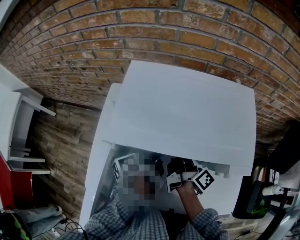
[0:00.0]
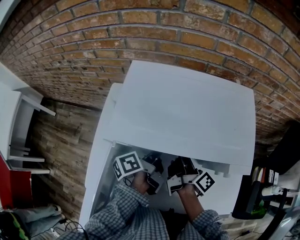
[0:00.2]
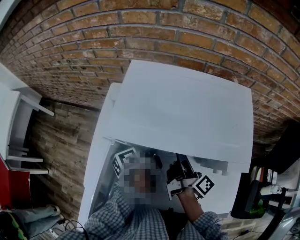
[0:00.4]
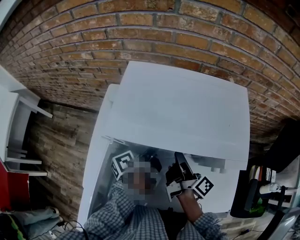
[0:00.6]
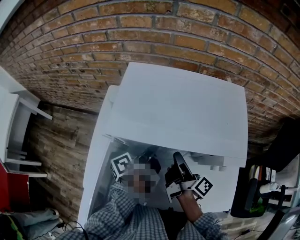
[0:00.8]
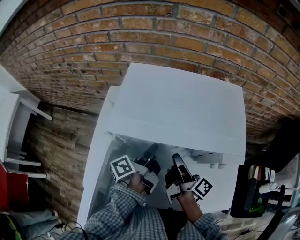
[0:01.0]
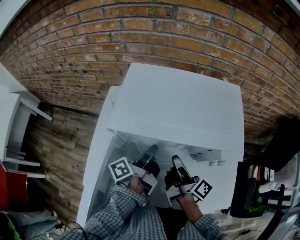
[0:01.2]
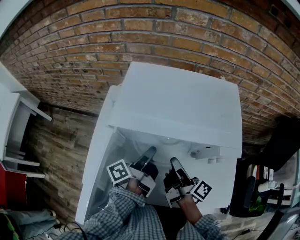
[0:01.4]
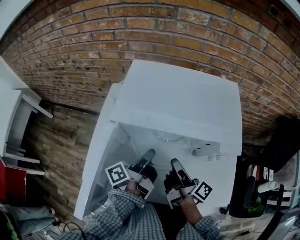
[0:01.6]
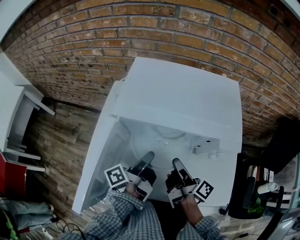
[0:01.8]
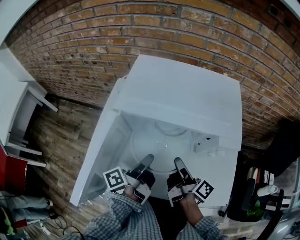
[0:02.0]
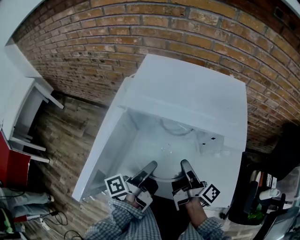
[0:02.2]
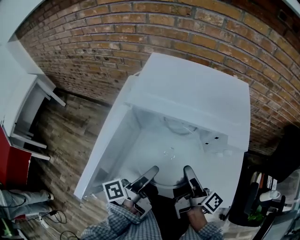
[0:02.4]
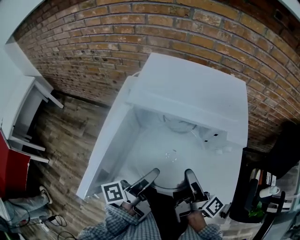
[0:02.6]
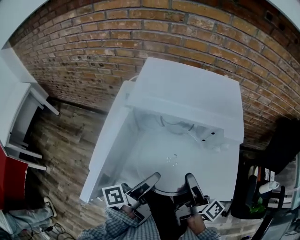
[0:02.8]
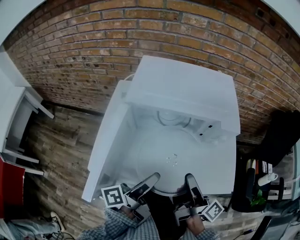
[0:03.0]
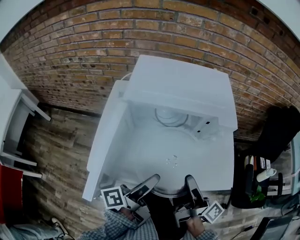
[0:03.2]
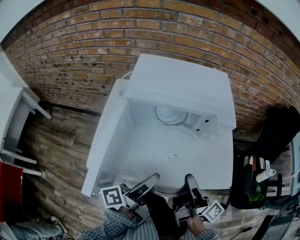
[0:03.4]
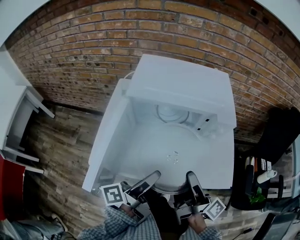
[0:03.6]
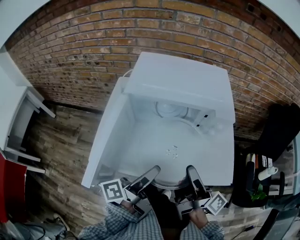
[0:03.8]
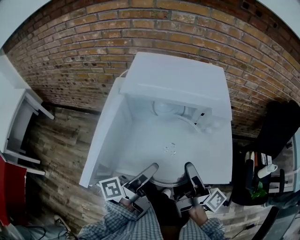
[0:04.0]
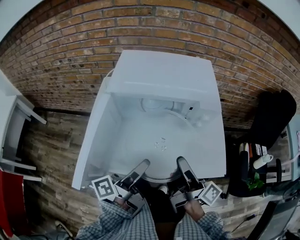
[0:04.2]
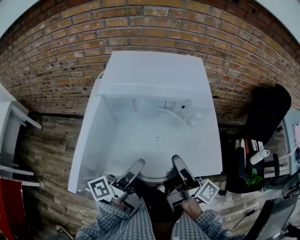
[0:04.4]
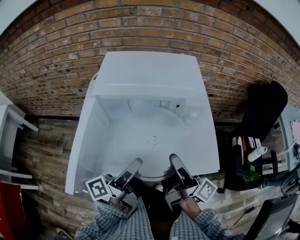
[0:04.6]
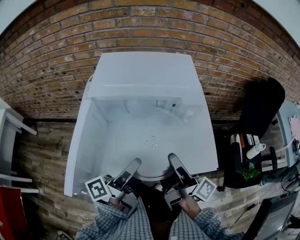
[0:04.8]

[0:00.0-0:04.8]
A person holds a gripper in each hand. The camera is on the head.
0:00.0 to 0:01.6: The left gripper heads backward, covering about 5 cm. The right gripper is displaced backward by roughly 10 cm.
0:01.6 to 0:03.2: Both grippers travel together backward, approximately 15 cm.
0:03.2 to 0:04.8: The grippers move only a little.

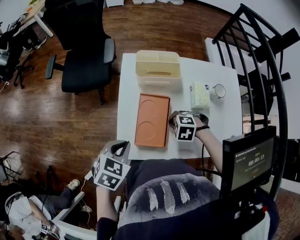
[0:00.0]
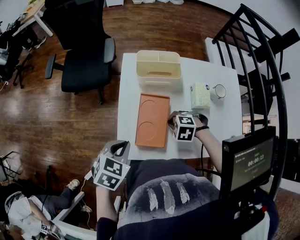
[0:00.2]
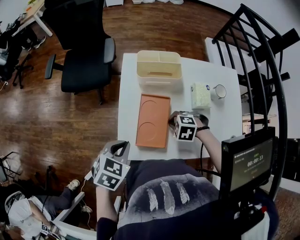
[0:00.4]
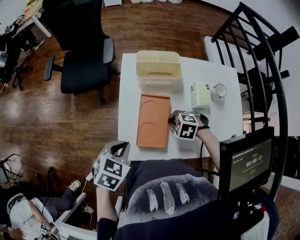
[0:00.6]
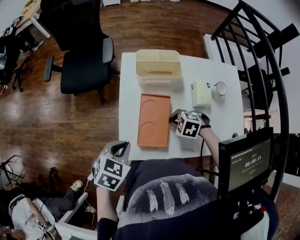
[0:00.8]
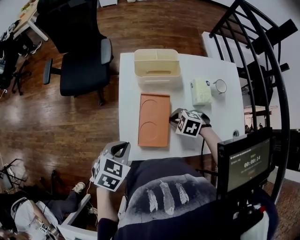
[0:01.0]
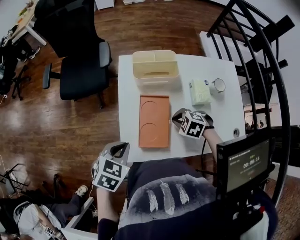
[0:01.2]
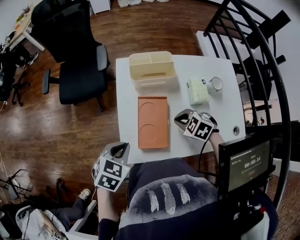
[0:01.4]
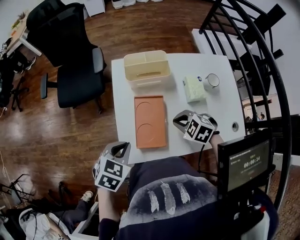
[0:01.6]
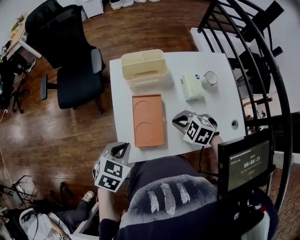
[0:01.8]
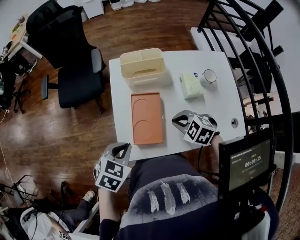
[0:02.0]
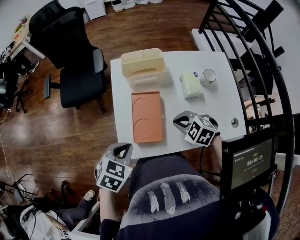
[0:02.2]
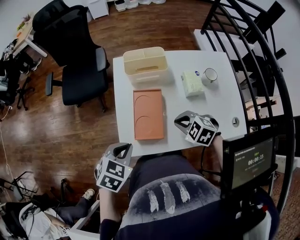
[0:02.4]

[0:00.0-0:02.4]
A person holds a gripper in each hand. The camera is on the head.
0:01.2 to 0:02.4: The left gripper changes place by about 5 cm.

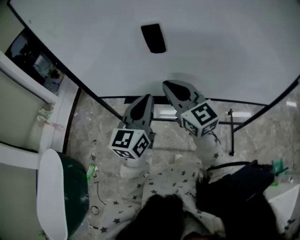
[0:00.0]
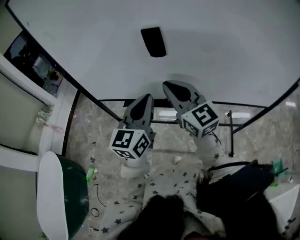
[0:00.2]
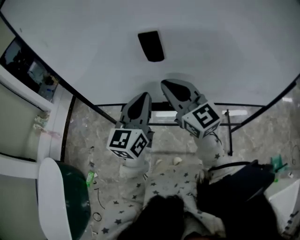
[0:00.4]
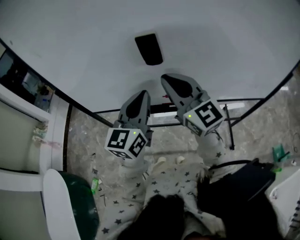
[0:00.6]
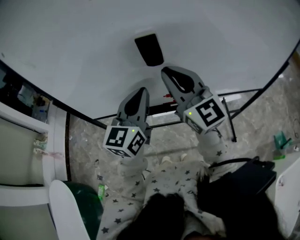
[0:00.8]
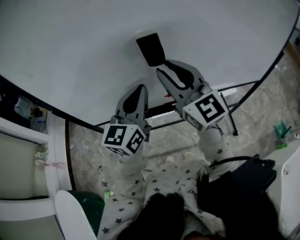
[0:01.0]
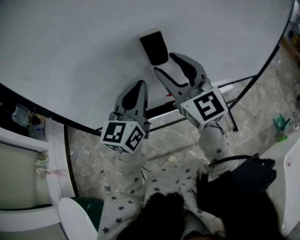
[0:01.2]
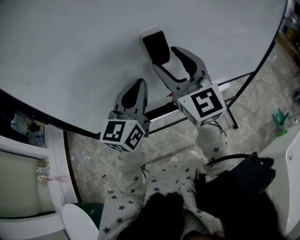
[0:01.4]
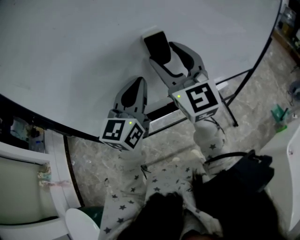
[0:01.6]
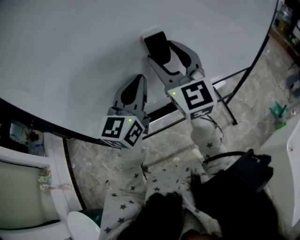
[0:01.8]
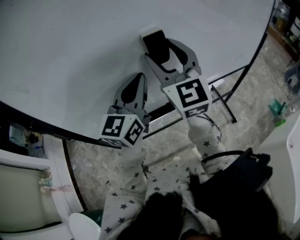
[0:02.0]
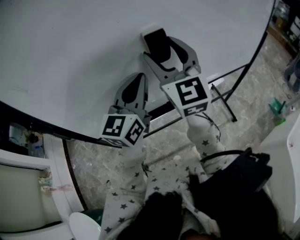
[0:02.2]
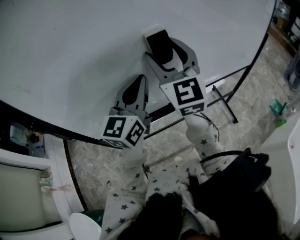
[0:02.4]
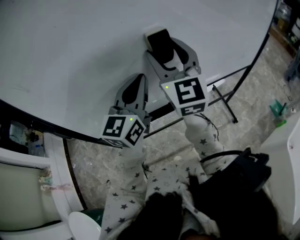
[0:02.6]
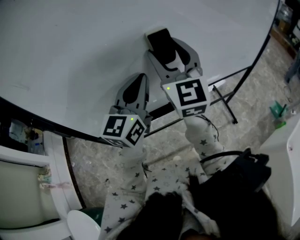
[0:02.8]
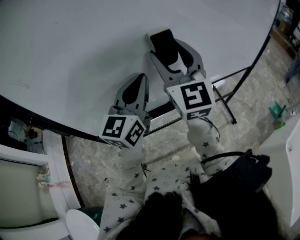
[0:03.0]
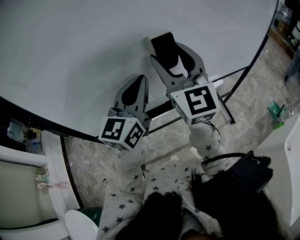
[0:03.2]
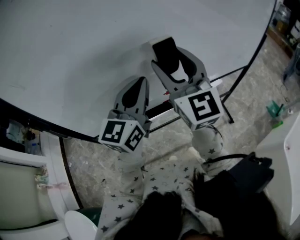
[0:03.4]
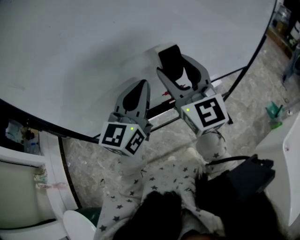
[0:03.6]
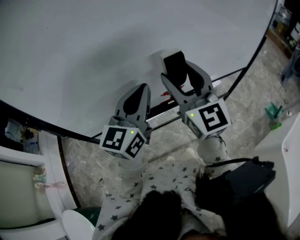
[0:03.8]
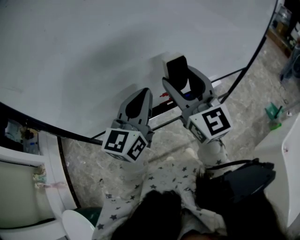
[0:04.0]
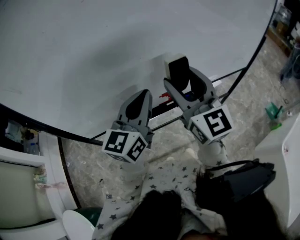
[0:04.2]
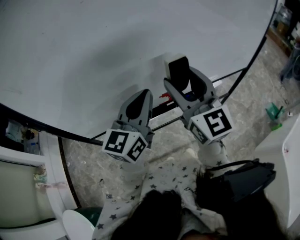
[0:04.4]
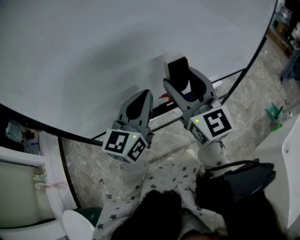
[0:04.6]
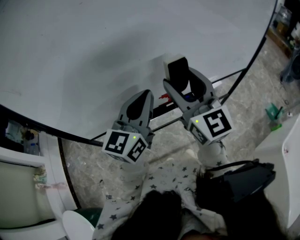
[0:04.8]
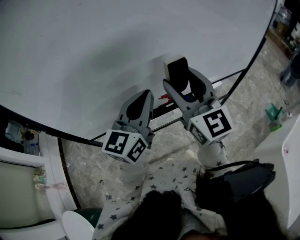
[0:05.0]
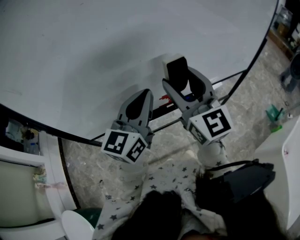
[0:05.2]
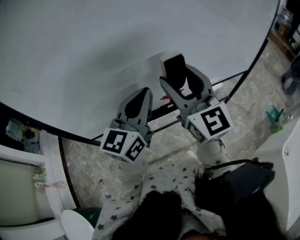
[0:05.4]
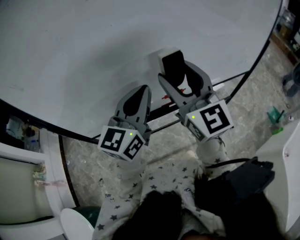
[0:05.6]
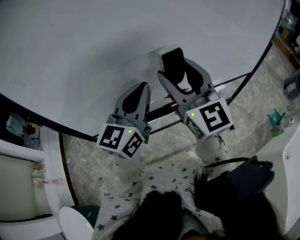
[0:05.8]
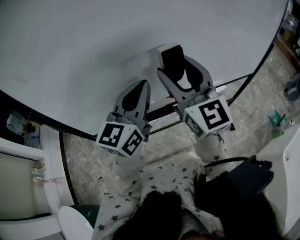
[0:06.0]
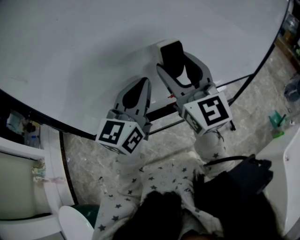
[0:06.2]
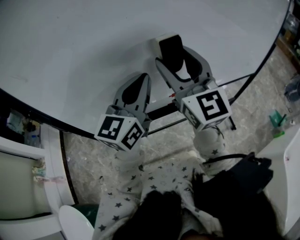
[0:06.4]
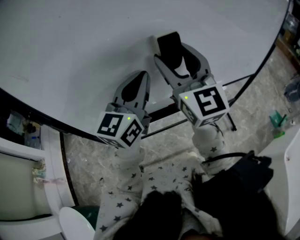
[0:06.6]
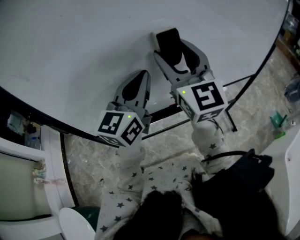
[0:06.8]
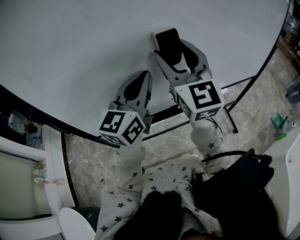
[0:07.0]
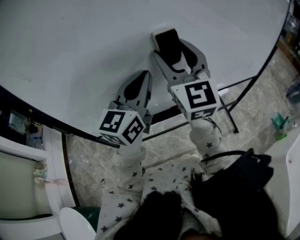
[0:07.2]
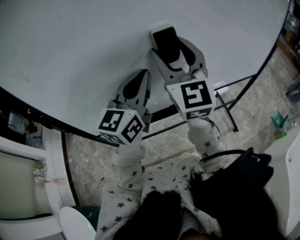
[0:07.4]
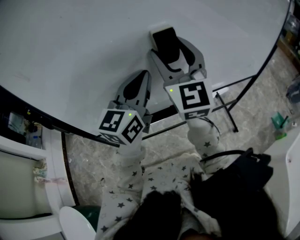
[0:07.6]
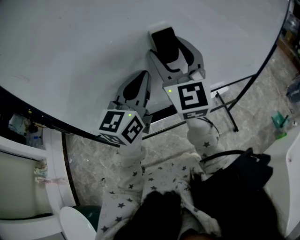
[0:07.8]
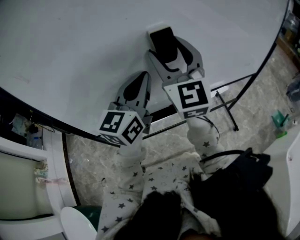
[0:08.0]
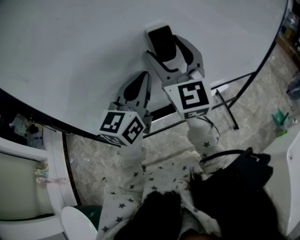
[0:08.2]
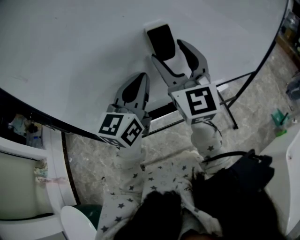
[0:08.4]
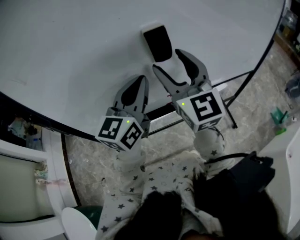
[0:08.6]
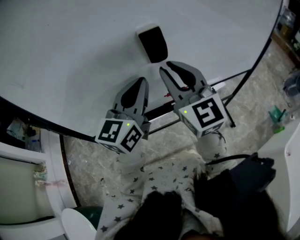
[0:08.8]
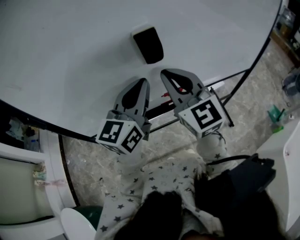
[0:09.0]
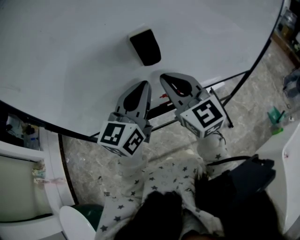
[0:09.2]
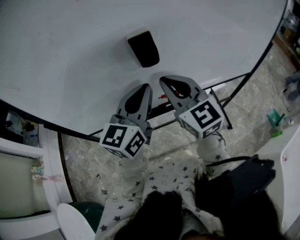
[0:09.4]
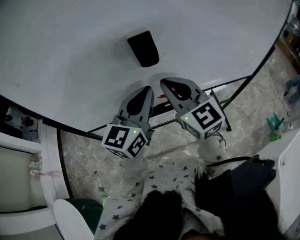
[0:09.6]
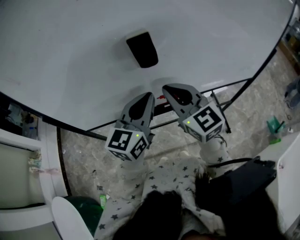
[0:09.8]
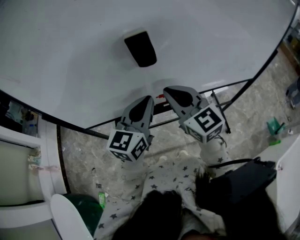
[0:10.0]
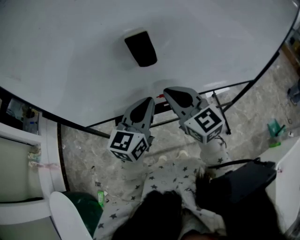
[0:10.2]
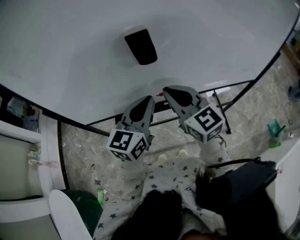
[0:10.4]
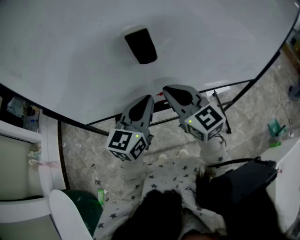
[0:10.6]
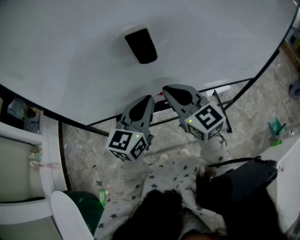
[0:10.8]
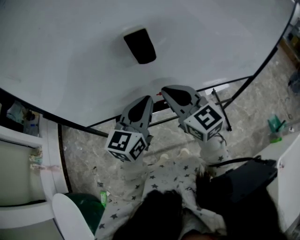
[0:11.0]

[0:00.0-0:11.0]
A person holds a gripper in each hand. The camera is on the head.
0:00.0 to 0:01.6: The right gripper is displaced upward by about 10 cm, swivels some 40 degrees, and opens up. Meanwhile the left gripper ends up some 15 cm from where it was, and turns by approximately 30 degrees.
0:01.6 to 0:03.2: The grippers make only small movements.
0:03.2 to 0:04.8: The right gripper moves to the right, some 5 cm. The left gripper changes place by approximately 5 cm.
0:04.8 to 0:06.2: The right gripper moves to the left, roughly 5 cm.
0:06.2 to 0:07.8: The grippers move only a little.
0:07.8 to 0:09.4: The right gripper is displaced downward by approximately 10 cm, rotates some 30 degrees, and closes up, while the left gripper goes roughly 5 cm to the right.
0:09.4 to 0:11.0: The left gripper is displaced downward by approximately 5 cm.

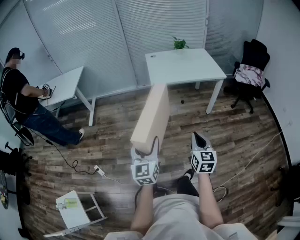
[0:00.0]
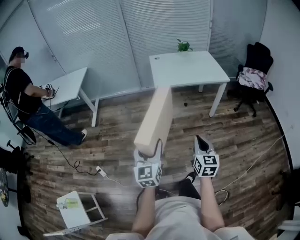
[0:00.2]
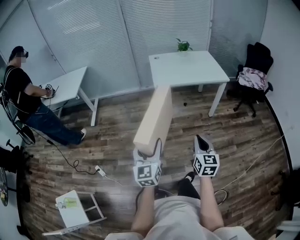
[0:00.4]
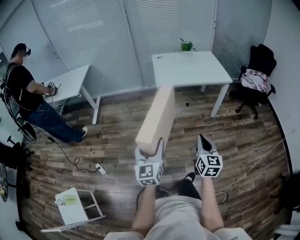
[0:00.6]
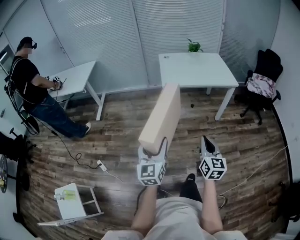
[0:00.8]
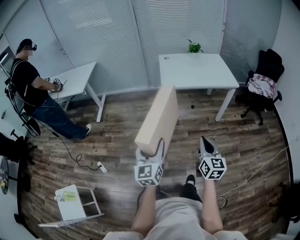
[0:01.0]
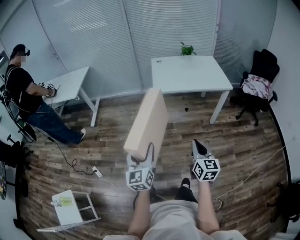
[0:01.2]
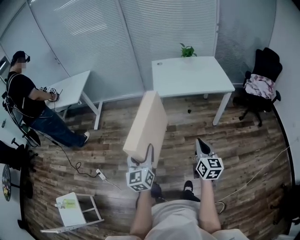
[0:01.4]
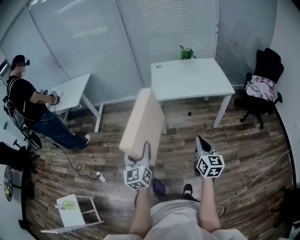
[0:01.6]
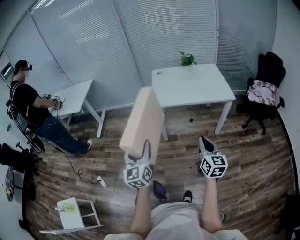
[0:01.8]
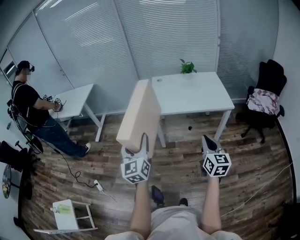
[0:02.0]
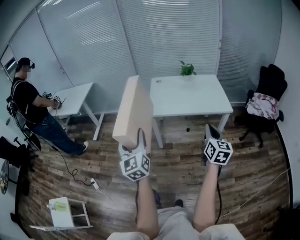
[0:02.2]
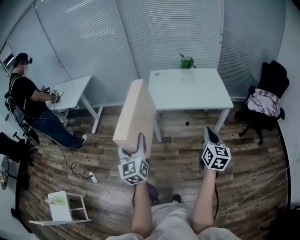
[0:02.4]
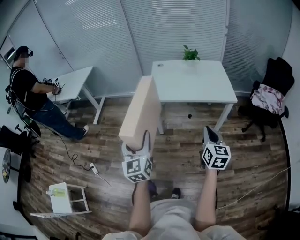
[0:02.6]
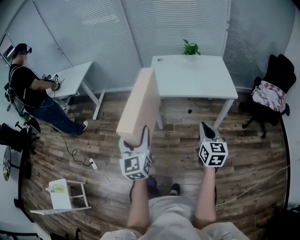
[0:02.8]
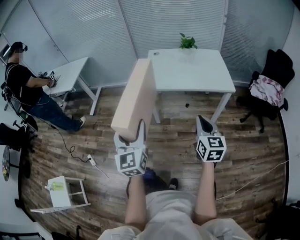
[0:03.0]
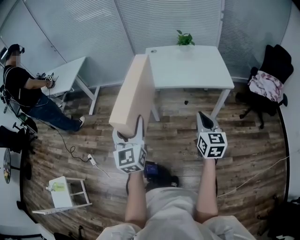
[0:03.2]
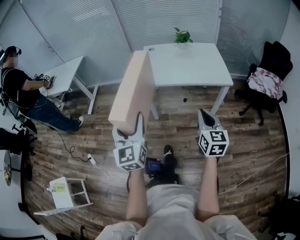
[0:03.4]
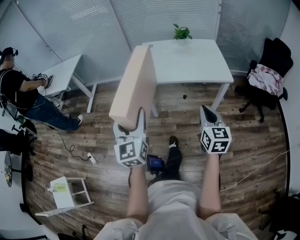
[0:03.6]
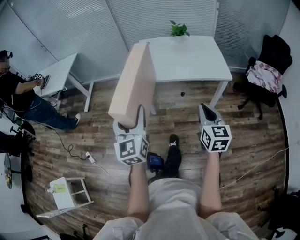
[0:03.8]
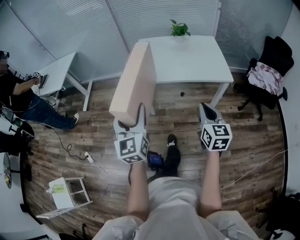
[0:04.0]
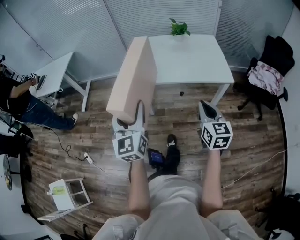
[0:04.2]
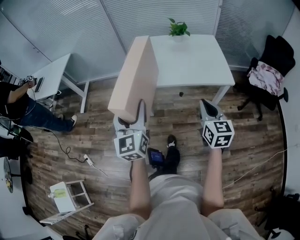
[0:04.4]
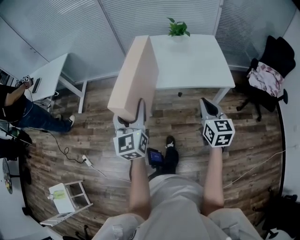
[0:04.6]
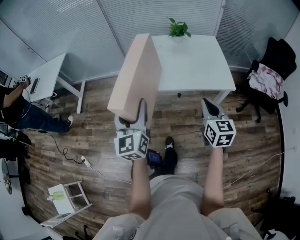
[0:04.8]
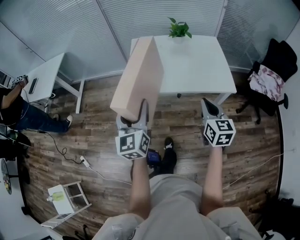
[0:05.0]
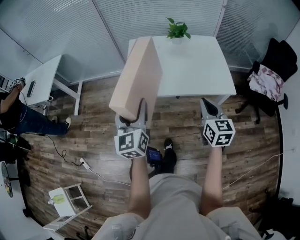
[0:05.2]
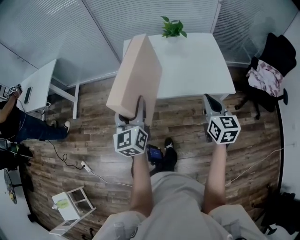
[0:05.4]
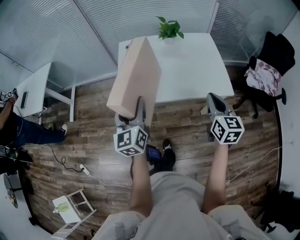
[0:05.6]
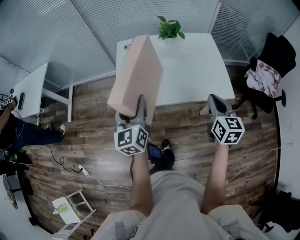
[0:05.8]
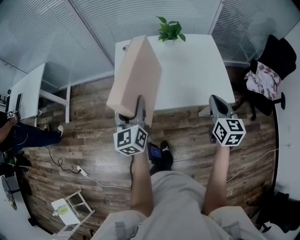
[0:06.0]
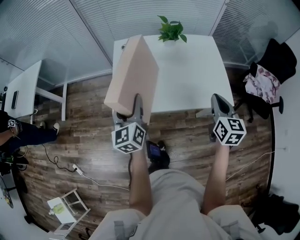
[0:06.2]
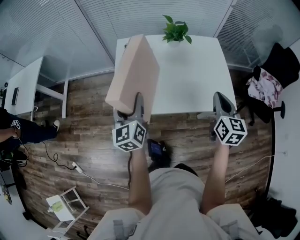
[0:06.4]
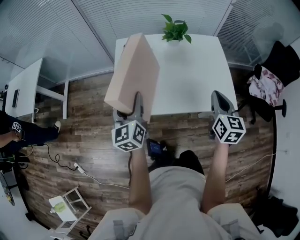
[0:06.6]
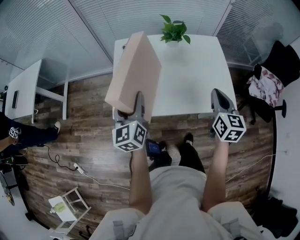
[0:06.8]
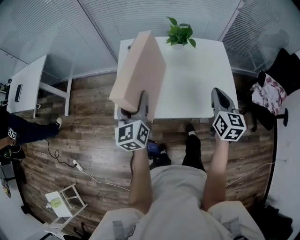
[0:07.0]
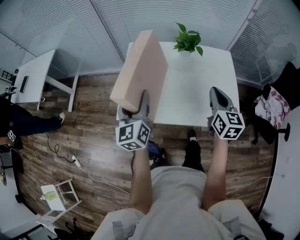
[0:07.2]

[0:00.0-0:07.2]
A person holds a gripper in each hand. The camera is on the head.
0:00.0 to 0:01.4: The left gripper goes about 5 cm forward, while the right gripper shifts some 10 cm forward and to the right.
0:01.4 to 0:02.8: The left gripper is displaced to the right, forward and upward by some 20 cm; the right gripper heads to the right and forward, covering roughly 20 cm.
0:02.8 to 0:04.4: The right gripper is displaced forward and to the right by some 15 cm; the left gripper heads forward, covering approximately 15 cm.
0:04.4 to 0:05.8: The left gripper travels forward by some 25 cm; the right gripper is displaced forward and to the right by roughly 25 cm.
0:05.8 to 0:07.2: The right gripper moves forward, approximately 20 cm, while the left gripper is displaced forward by roughly 10 cm.
